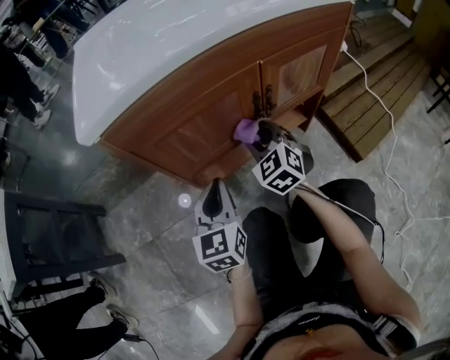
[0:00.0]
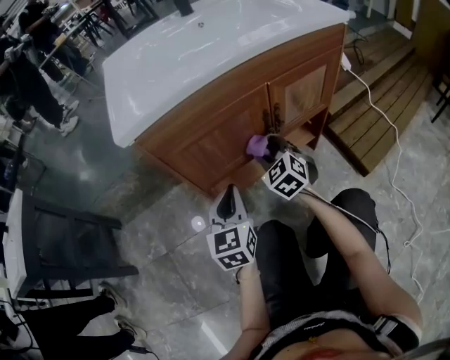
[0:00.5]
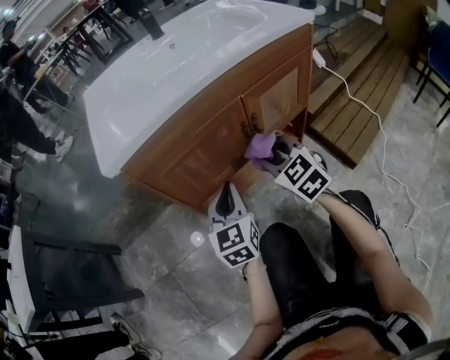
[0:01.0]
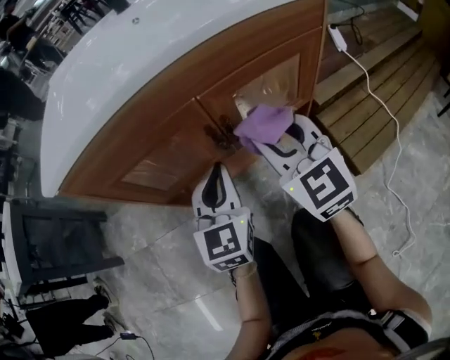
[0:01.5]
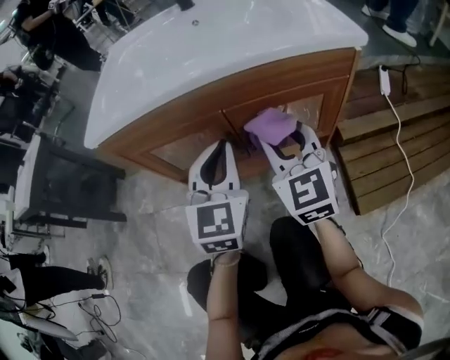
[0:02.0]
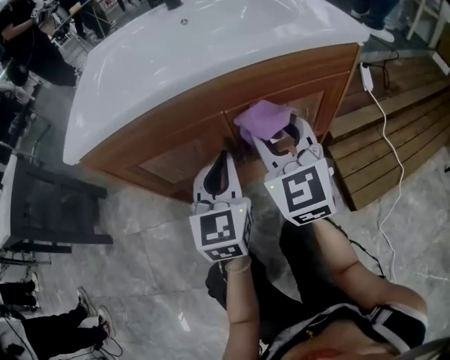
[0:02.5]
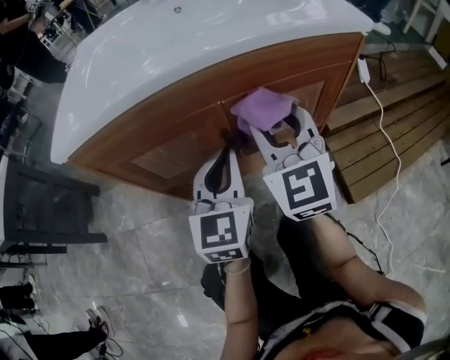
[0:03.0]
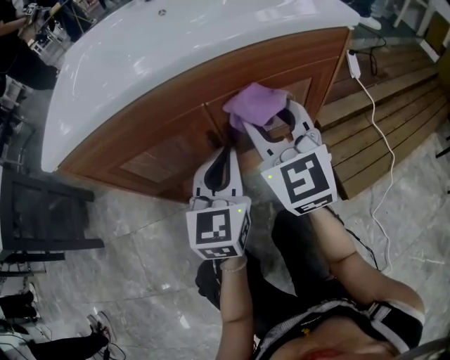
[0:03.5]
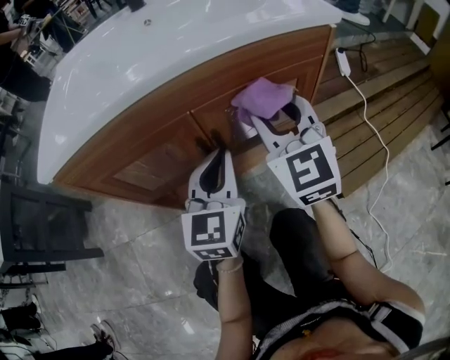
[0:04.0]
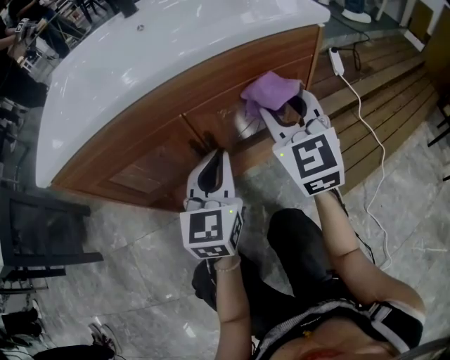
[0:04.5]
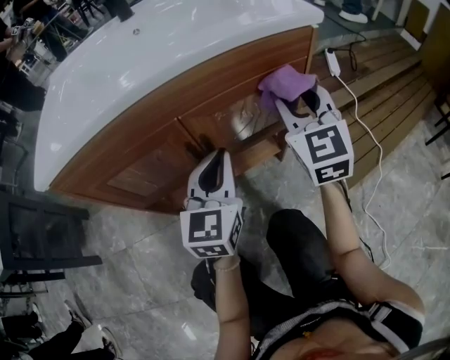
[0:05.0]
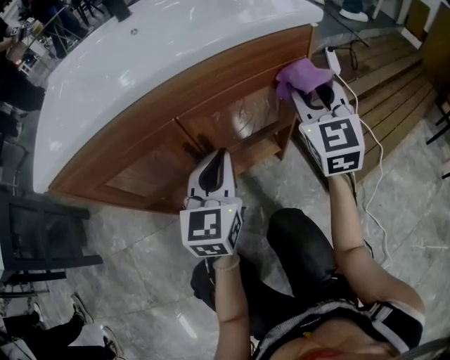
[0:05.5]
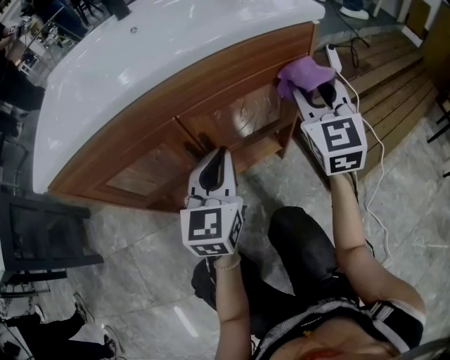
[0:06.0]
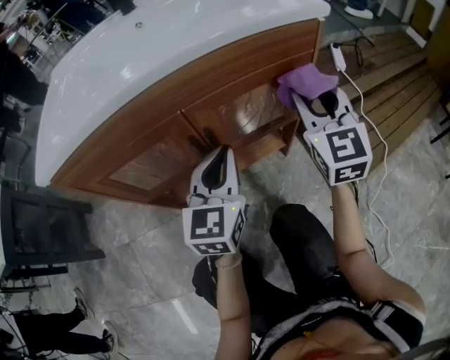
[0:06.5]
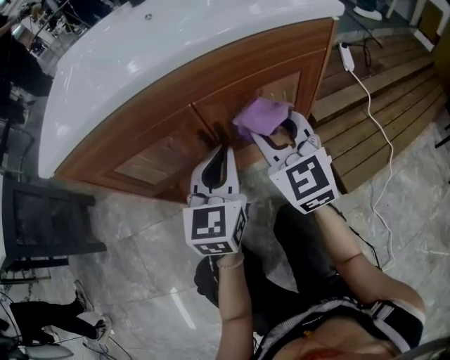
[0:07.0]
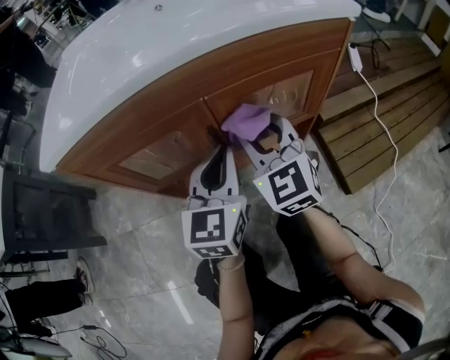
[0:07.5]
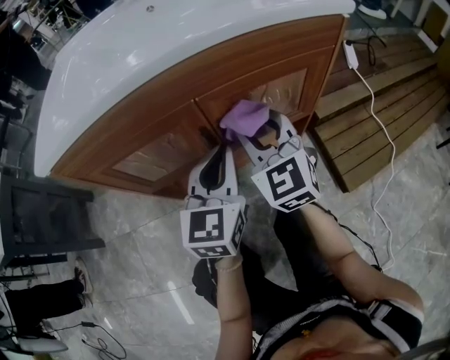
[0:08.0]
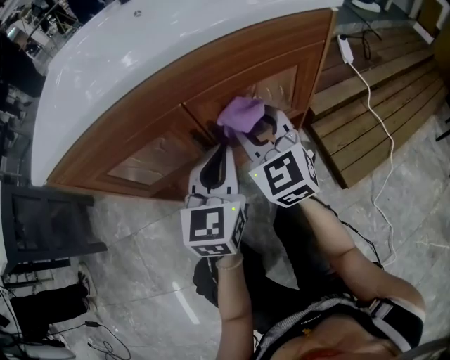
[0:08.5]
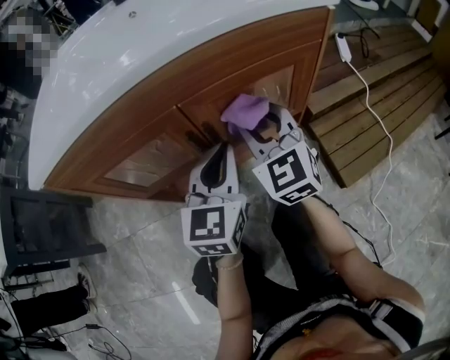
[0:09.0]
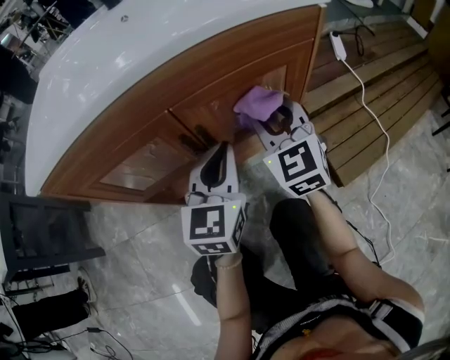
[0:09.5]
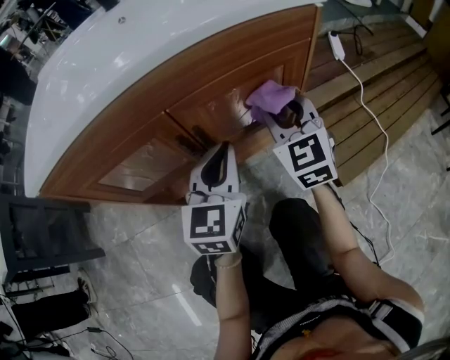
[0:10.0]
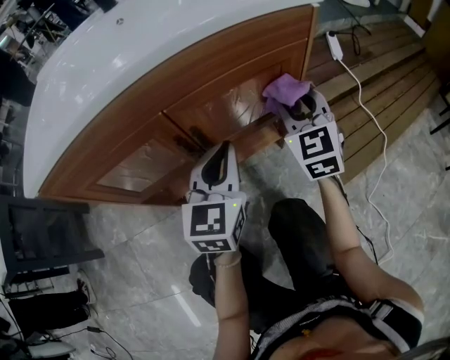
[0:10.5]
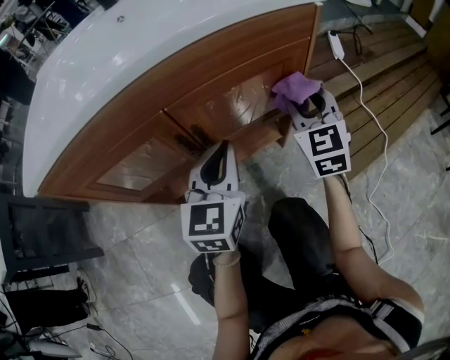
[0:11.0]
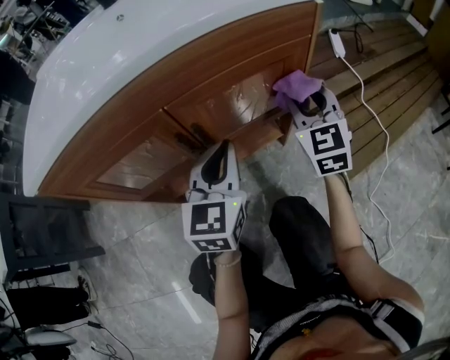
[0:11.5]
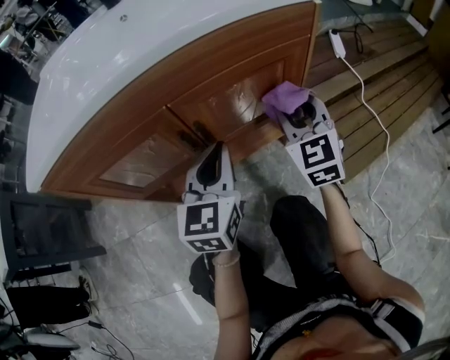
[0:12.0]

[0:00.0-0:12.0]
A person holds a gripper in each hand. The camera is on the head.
0:00.0 to 0:02.0: The right gripper moves upward and to the right, about 25 cm, and swivels some 30 degrees. The left gripper heads to the right and upward, covering roughly 25 cm, and turns by about 20 degrees.
0:02.0 to 0:04.0: The left gripper goes roughly 5 cm downward.
0:04.0 to 0:06.0: The right gripper is displaced to the right by approximately 10 cm.
0:06.0 to 0:08.0: The right gripper travels to the left and downward by about 20 cm, and changes its angle by roughly 20 degrees.
0:08.0 to 0:10.0: The right gripper heads to the right, covering approximately 10 cm.

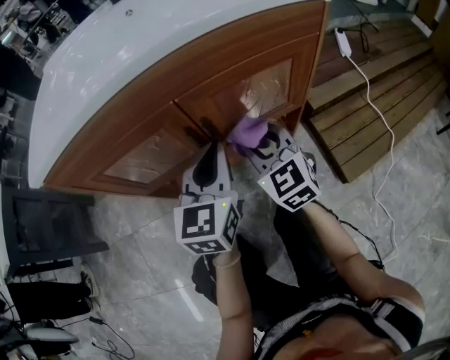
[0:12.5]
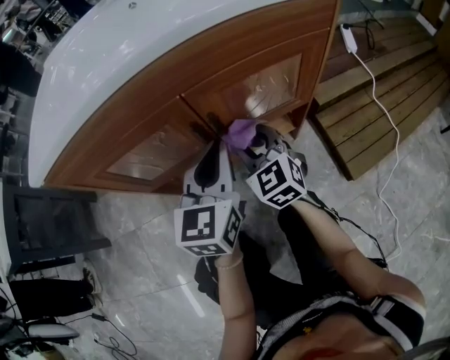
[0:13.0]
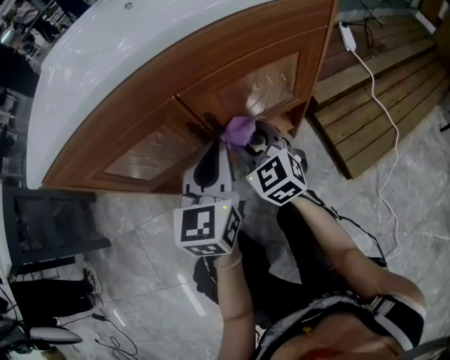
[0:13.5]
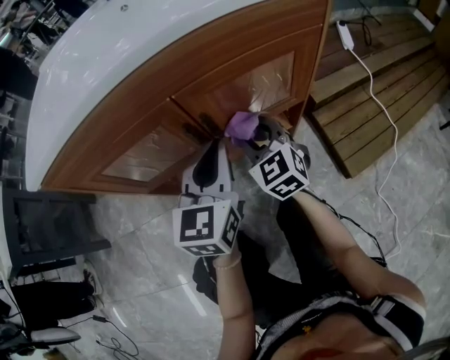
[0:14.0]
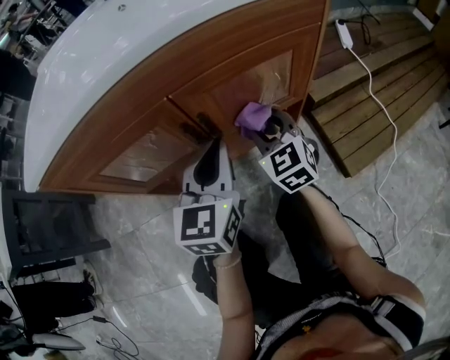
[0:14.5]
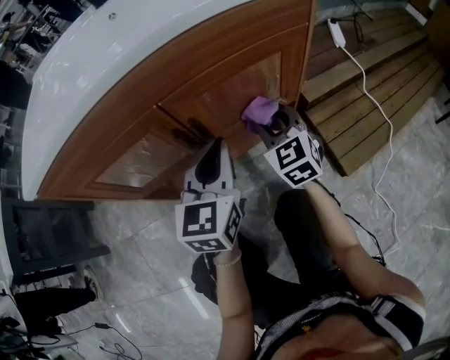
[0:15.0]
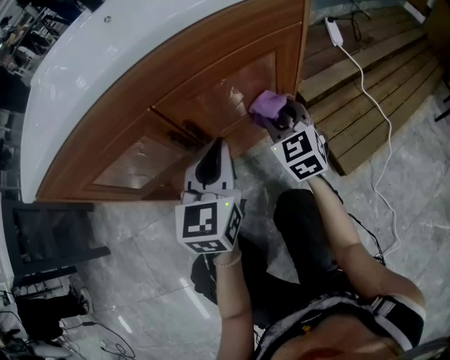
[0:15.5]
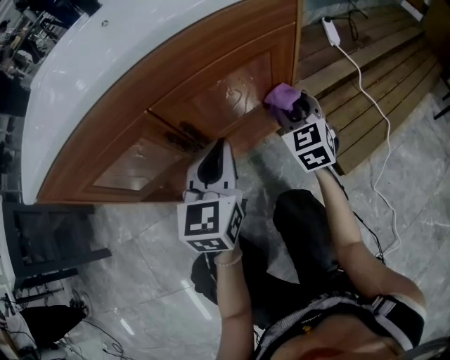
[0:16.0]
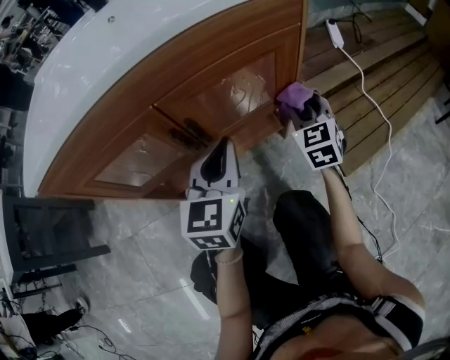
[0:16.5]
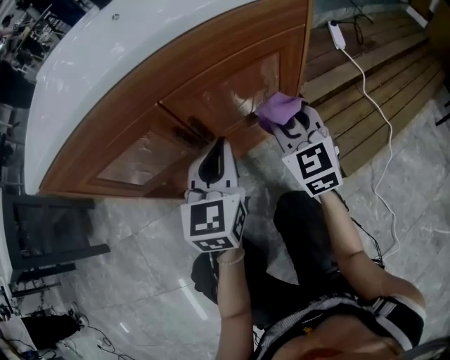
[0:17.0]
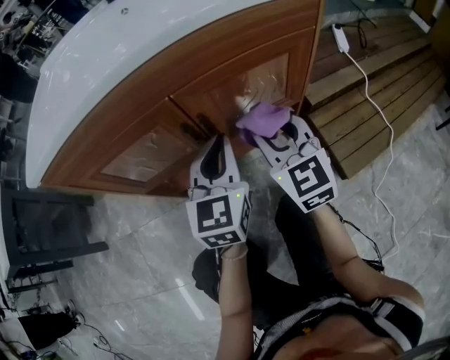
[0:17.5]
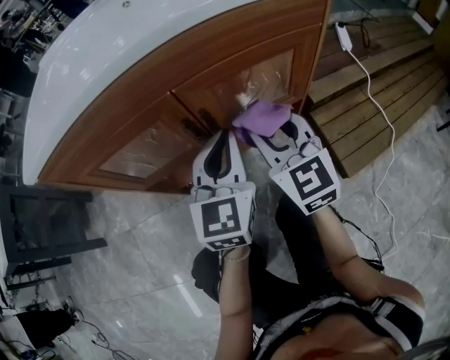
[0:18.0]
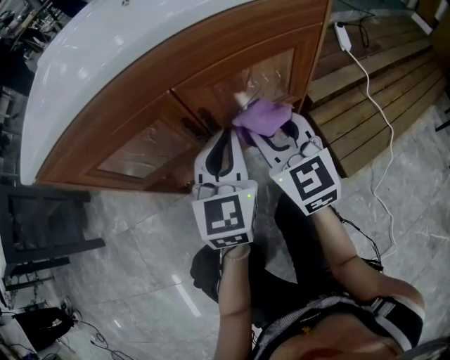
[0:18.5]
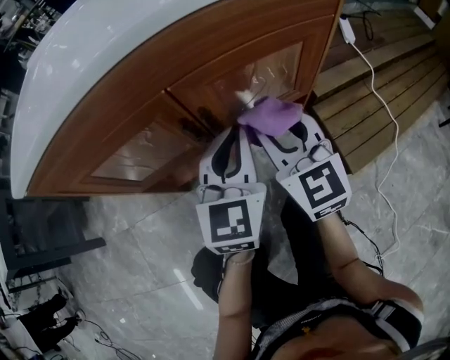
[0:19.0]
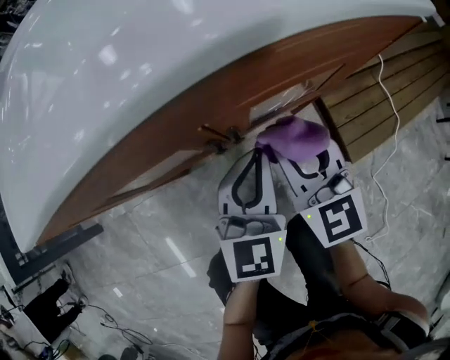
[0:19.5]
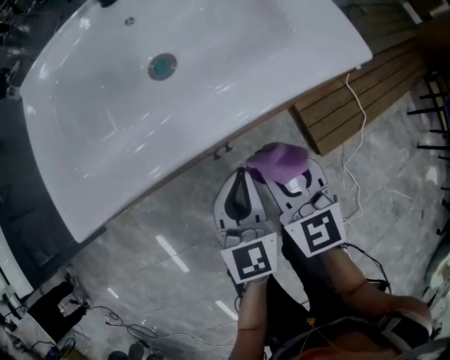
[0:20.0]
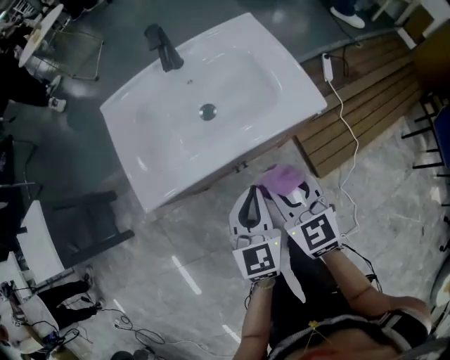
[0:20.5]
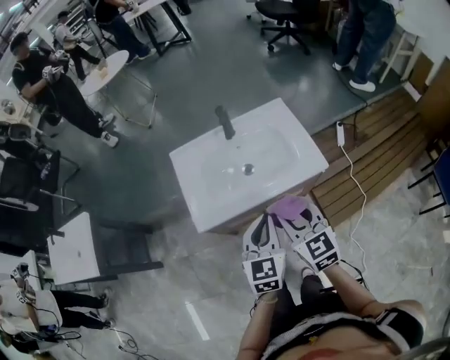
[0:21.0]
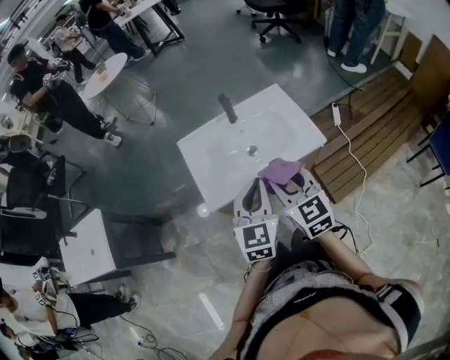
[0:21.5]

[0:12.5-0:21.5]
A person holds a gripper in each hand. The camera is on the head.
0:12.5 to 0:14.5: The right gripper moves some 5 cm.
0:14.5 to 0:17.0: The right gripper heads to the right and upward, covering roughly 10 cm.
0:17.0 to 0:19.5: The right gripper is displaced to the left by about 10 cm.
0:19.5 to 0:21.5: Both grippers move upward, about 50 cm.

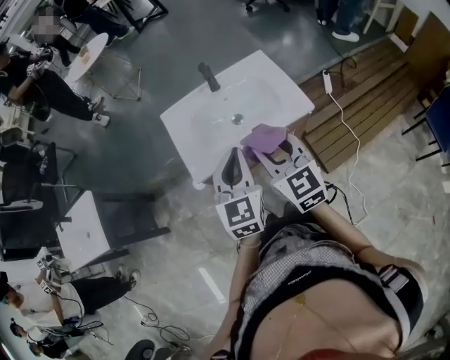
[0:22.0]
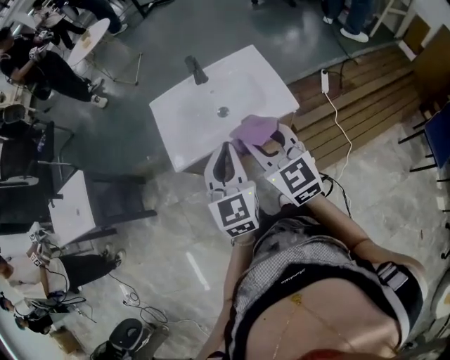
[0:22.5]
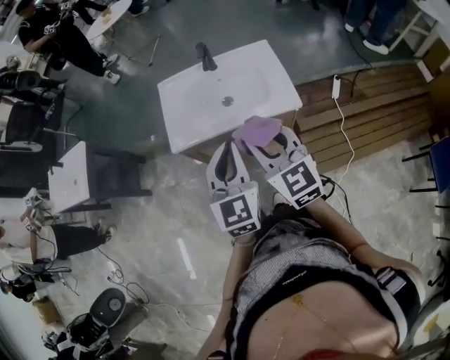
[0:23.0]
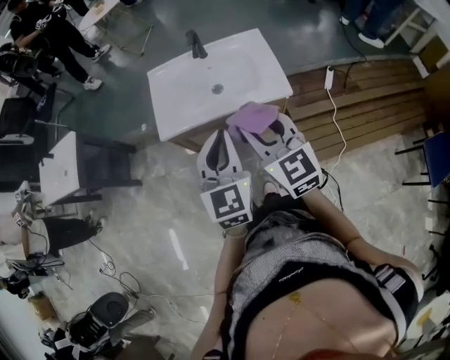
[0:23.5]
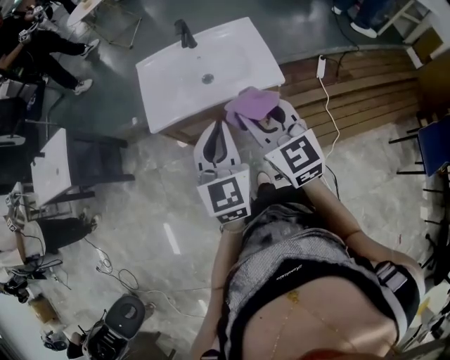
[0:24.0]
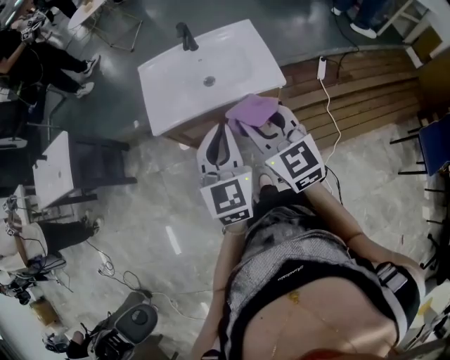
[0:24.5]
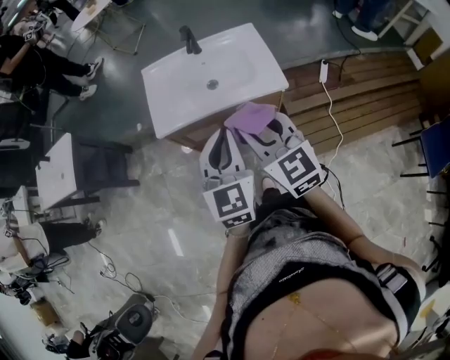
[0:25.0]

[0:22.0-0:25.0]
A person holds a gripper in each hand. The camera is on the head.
0:22.0 to 0:23.5: The left gripper moves backward and to the right, about 15 cm; the right gripper shifts some 10 cm to the right and backward.
0:23.5 to 0:25.0: The grippers stay close to where they were, moving slightly.

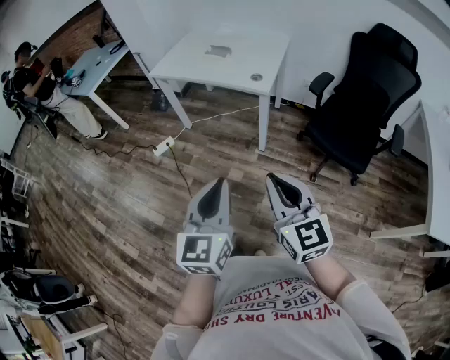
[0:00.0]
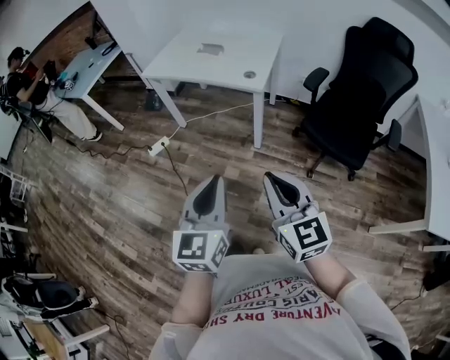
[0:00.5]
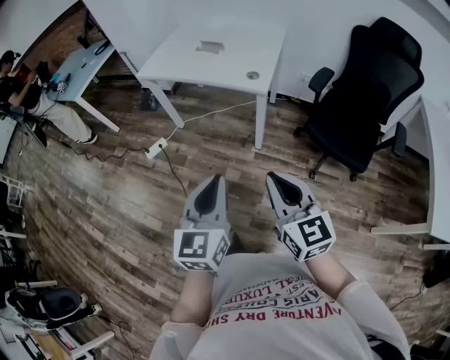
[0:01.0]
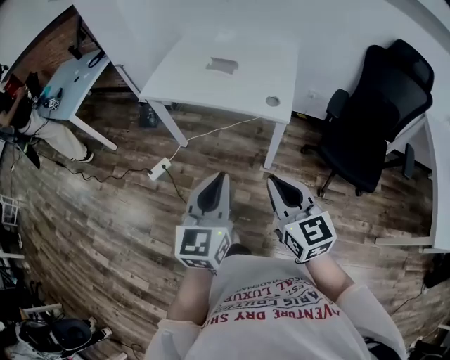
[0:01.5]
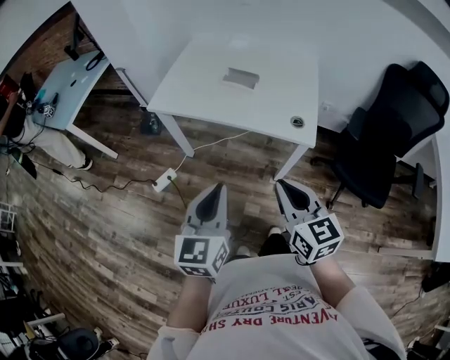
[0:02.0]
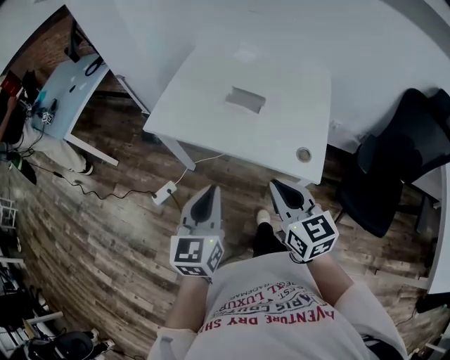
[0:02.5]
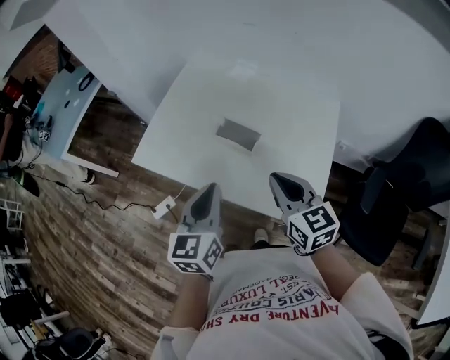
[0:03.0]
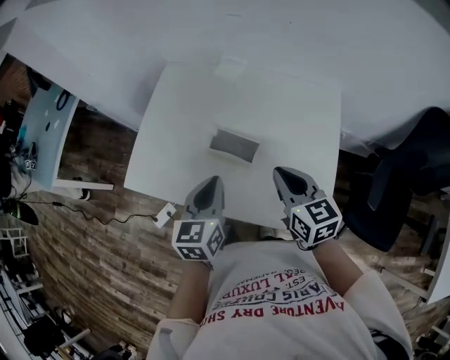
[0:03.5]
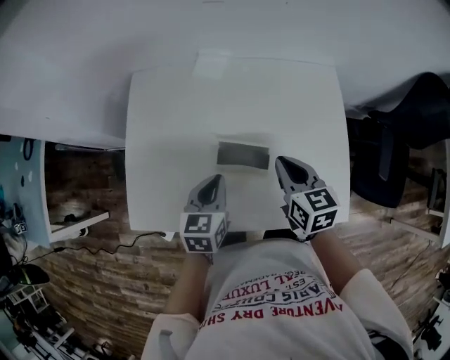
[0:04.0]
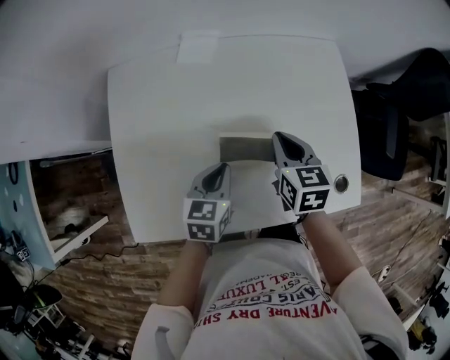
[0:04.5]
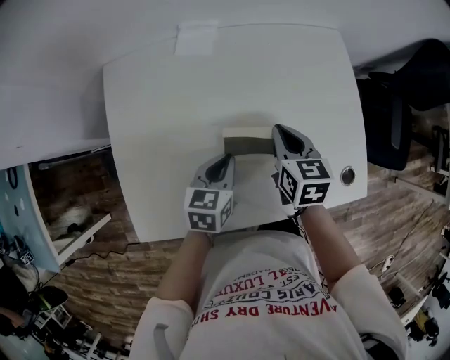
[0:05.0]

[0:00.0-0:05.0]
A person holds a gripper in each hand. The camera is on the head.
0:00.0 to 0:02.5: The pair of grippers is taken forward, approximately 50 cm.
0:02.5 to 0:05.0: The two grippers travel together, approximately 40 cm. The left gripper swivels approximately 50 degrees. Meanwhile the right gripper turns by about 50 degrees.
